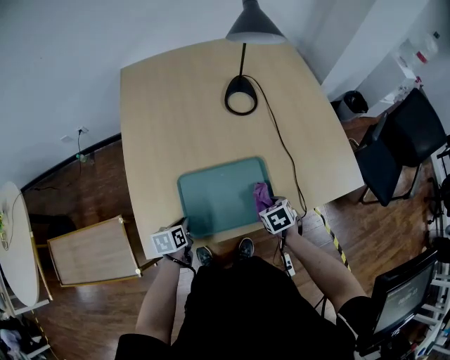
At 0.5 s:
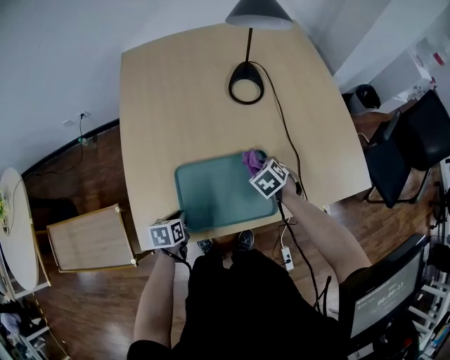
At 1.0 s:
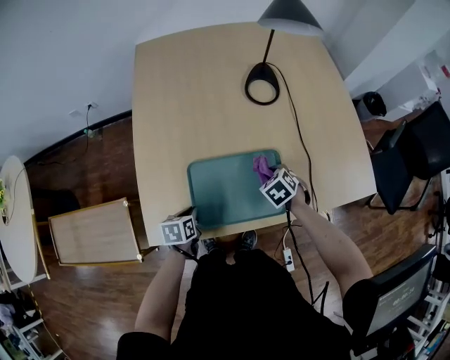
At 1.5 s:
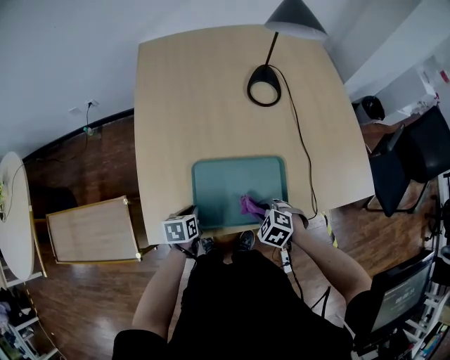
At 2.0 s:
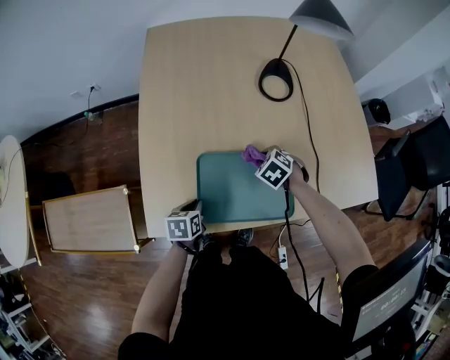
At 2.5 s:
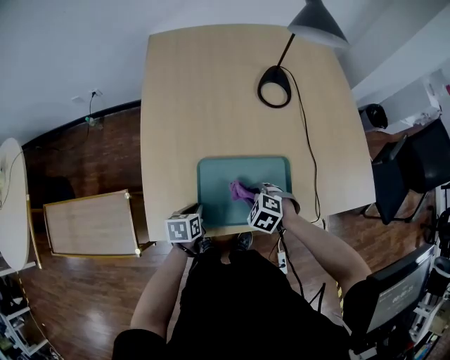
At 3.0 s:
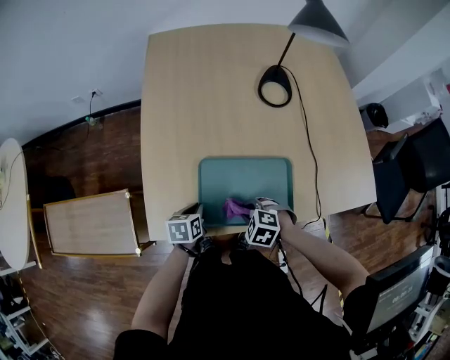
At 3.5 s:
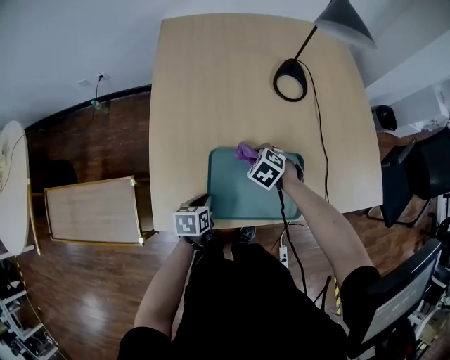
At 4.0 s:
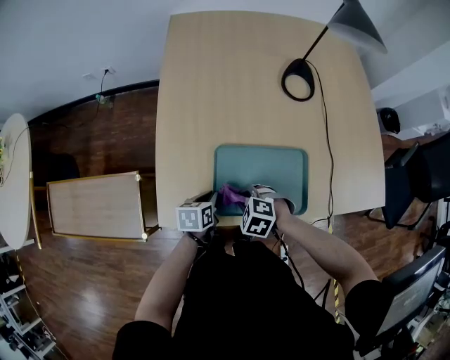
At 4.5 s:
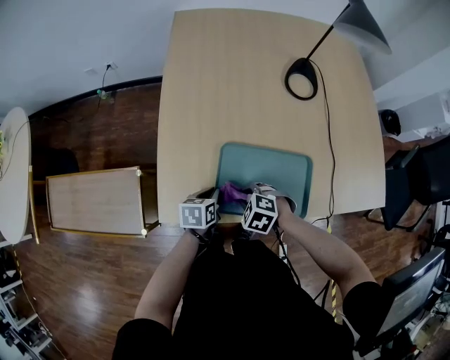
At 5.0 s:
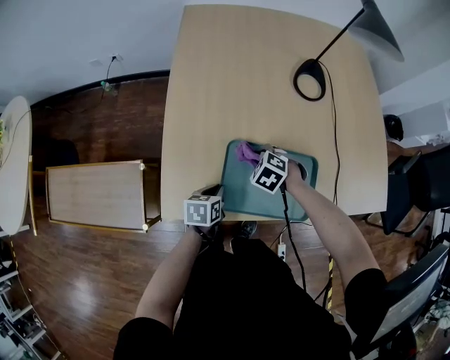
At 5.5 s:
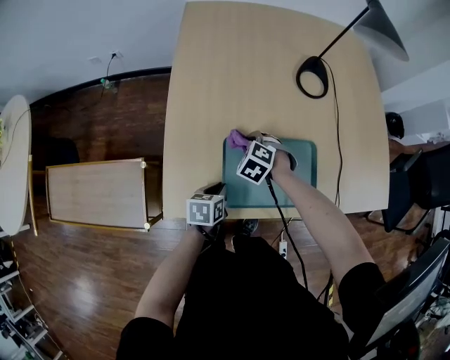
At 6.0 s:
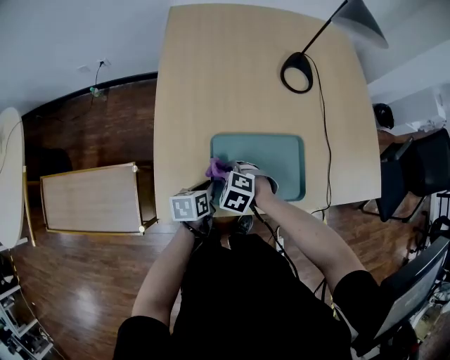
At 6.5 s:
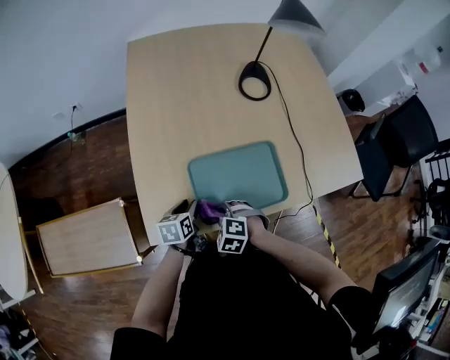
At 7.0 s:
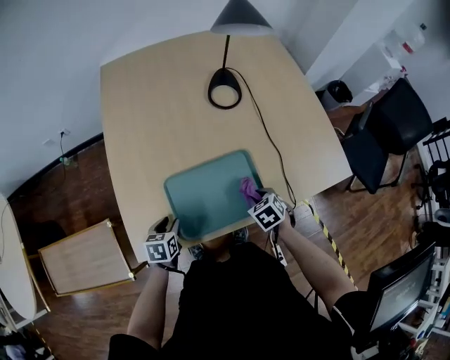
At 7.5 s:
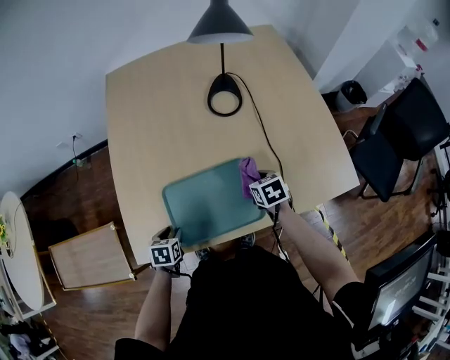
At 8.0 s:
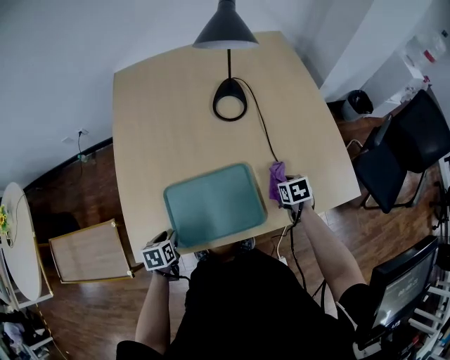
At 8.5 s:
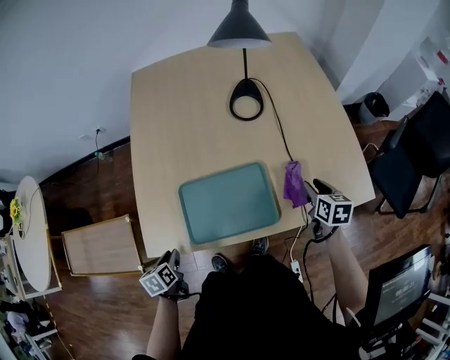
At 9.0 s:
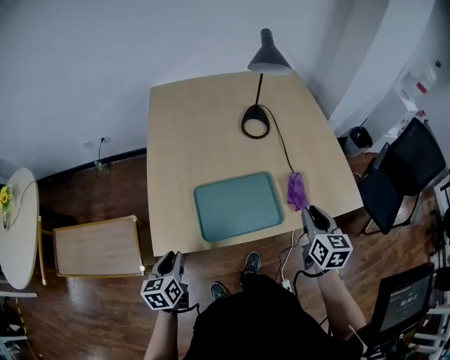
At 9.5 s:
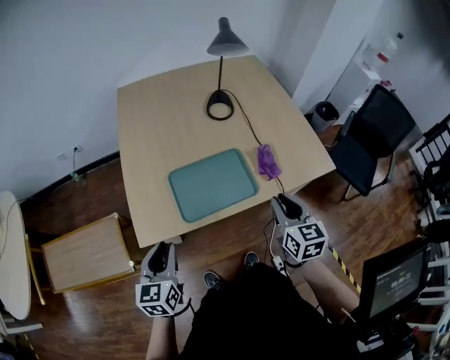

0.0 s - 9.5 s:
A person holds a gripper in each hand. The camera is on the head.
0.0 s - 2.0 s: The right gripper swings forward and backward, some 15 cm each way, with 2 reversals, and rotates roughly 40 degrees.
2.0 s - 4.0 s: The right gripper goes forward and backward, some 15 cm each way, reversing 2 times, and rotates roughly 30 degrees.
4.0 s - 5.5 s: The right gripper shifts some 15 cm forward.
5.5 s - 7.5 s: The right gripper heads to the right, covering about 25 cm, and rolls clockwise, seen from behind, by about 60 degrees. The left gripper turns by approximately 20 degrees, and opens.
7.5 s - 9.5 s: Both grippers travel together upward and backward, approximately 25 cm. The right gripper points its fingers about 30 degrees further upward, and opens and closes again, while the left gripper tips its fingers upward by approximately 40 degrees.

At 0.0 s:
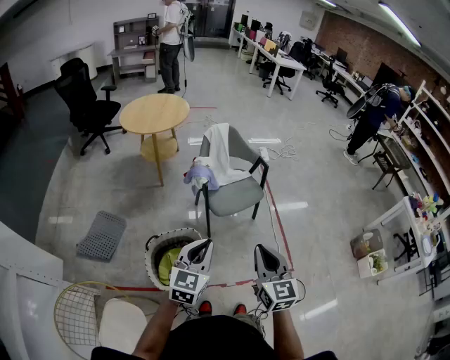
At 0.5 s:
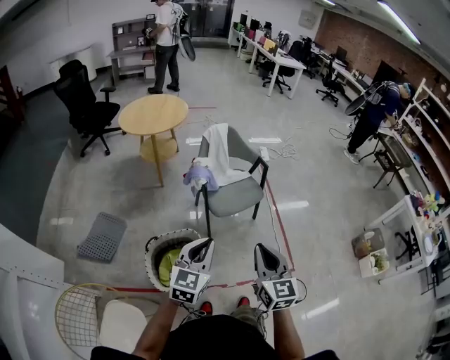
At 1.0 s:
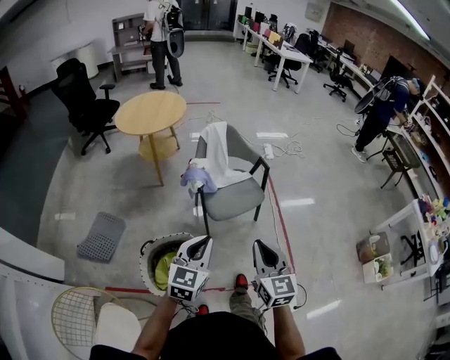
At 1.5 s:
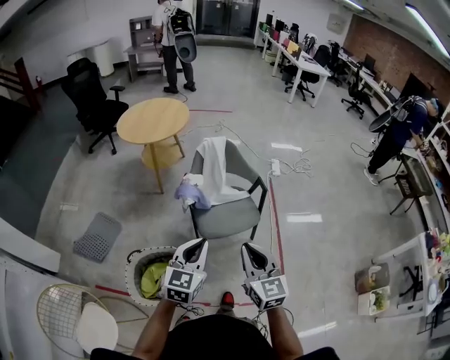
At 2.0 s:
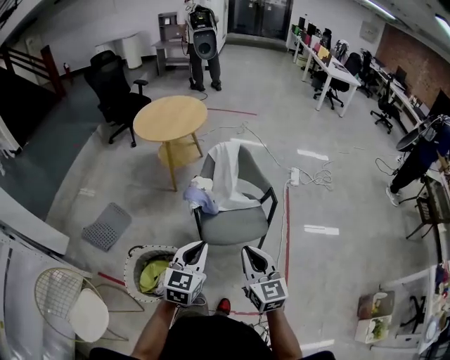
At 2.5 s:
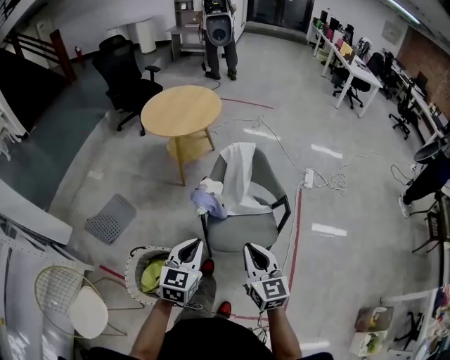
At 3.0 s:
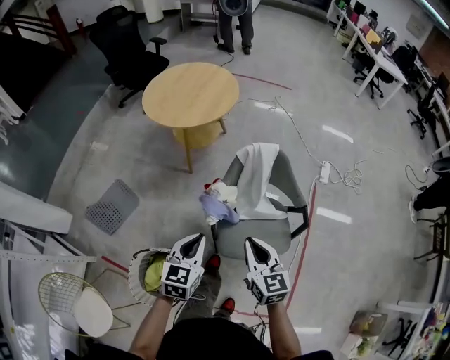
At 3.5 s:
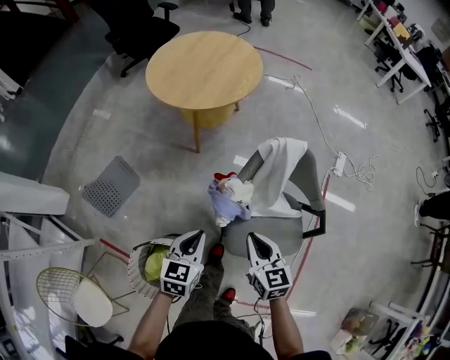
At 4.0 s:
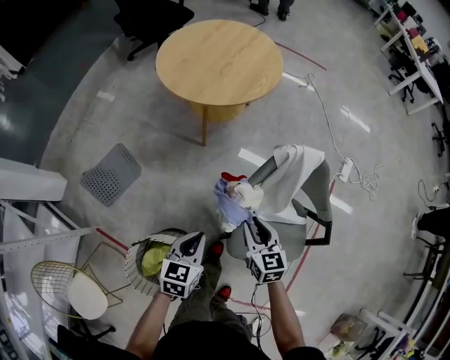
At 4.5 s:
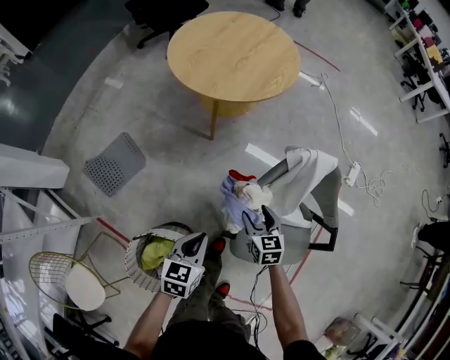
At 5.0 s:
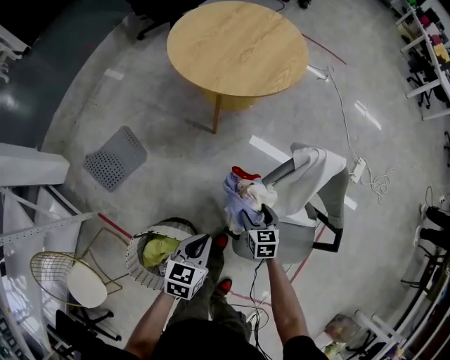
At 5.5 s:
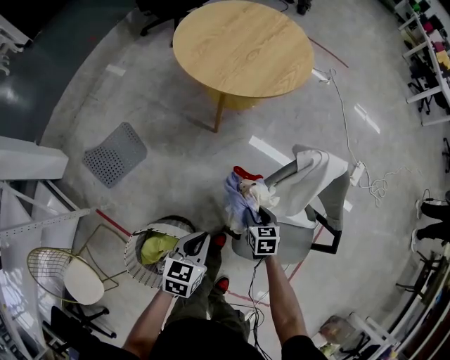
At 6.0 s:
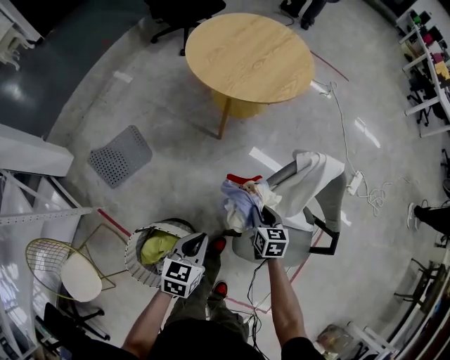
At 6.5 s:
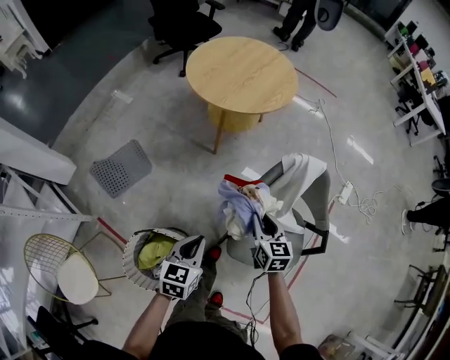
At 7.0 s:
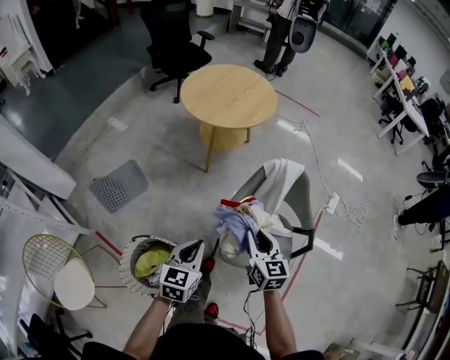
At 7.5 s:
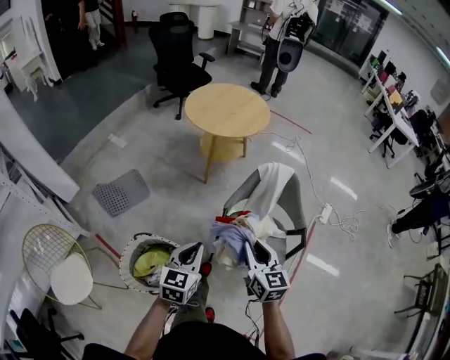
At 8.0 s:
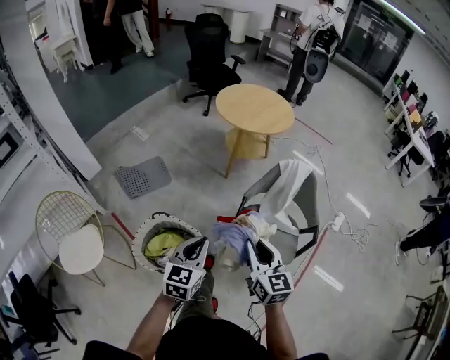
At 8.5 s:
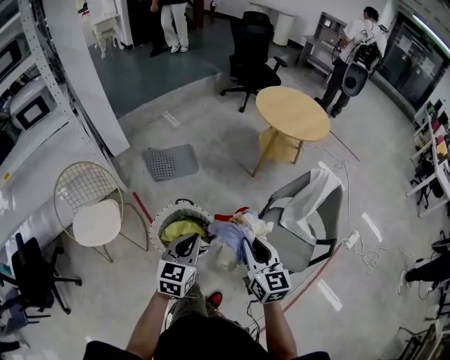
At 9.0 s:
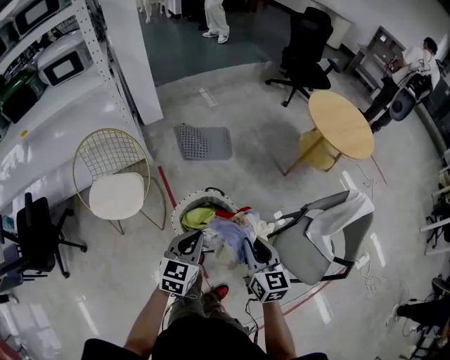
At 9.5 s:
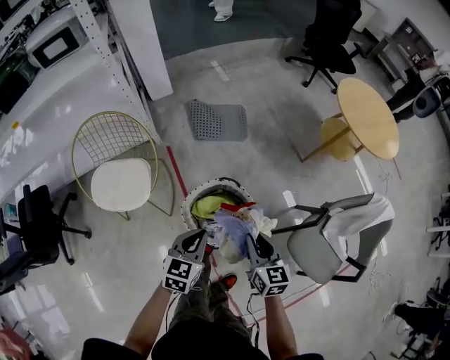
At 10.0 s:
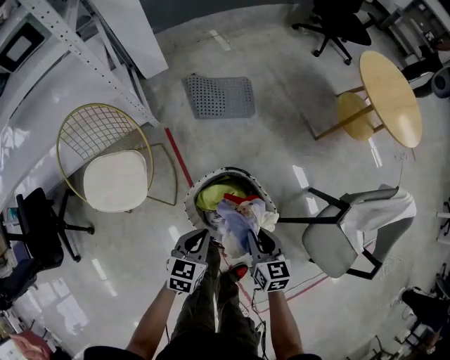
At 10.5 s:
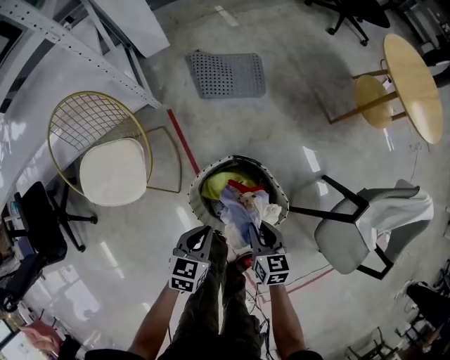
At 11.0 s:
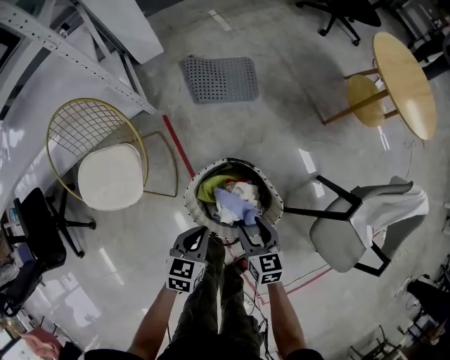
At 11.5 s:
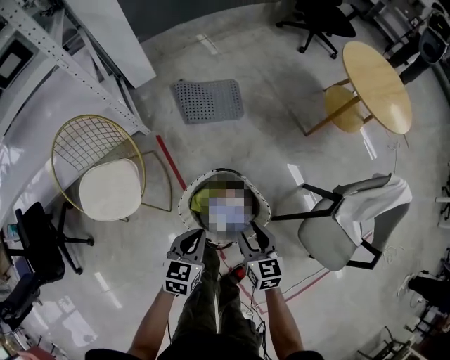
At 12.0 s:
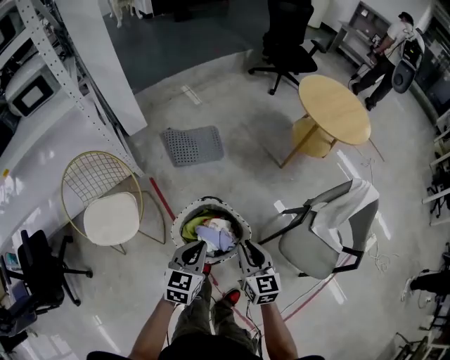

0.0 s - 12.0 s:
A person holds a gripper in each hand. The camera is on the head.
0.0 s - 2.0 s: The two grippers go roughly 30 cm forward and to the right. The right gripper swivels about 20 degrees.
2.0 s - 4.0 s: The right gripper travels forward and downward by approximately 50 cm, and changes its angle by approximately 30 degrees; the left gripper moves forward, downward and to the left, roughly 40 cm, and changes its angle by some 30 degrees.
4.0 s - 6.0 s: The right gripper goes roughly 10 cm downward, and opens, then closes again.
6.0 s - 8.0 s: The two grippers go roughly 40 cm backward and upward. The left gripper changes its angle by about 30 degrees. Meanwhile the right gripper tips its fingers upward by about 30 degrees.
8.0 s - 10.0 s: The right gripper shifts by roughly 40 cm, and turns by roughly 40 degrees; the left gripper shifts by roughly 40 cm, and turns by approximately 30 degrees.
10.0 s - 12.0 s: The left gripper heads upward and to the right, covering approximately 15 cm, while the right gripper moves upward, some 15 cm, and opens and closes again.

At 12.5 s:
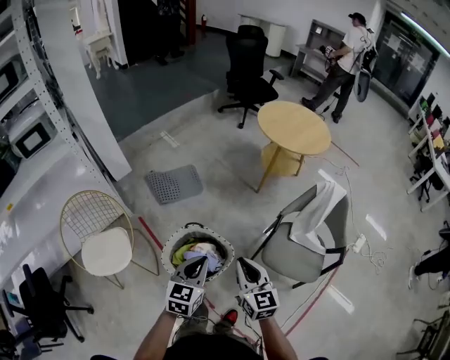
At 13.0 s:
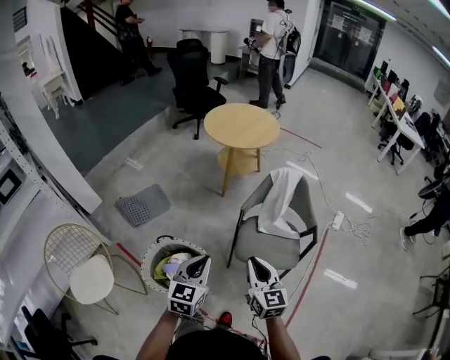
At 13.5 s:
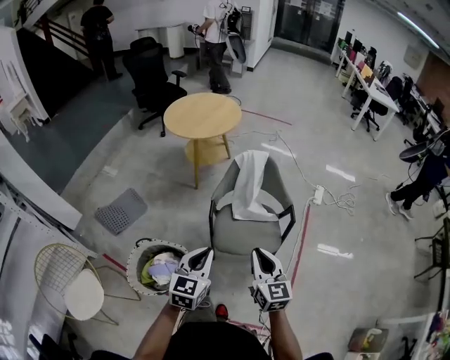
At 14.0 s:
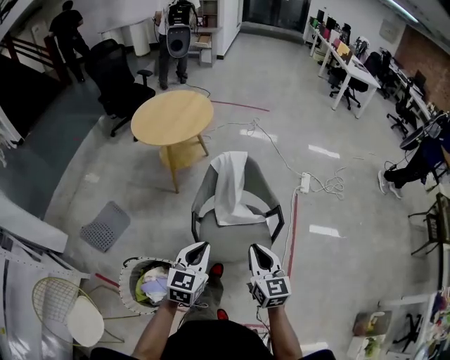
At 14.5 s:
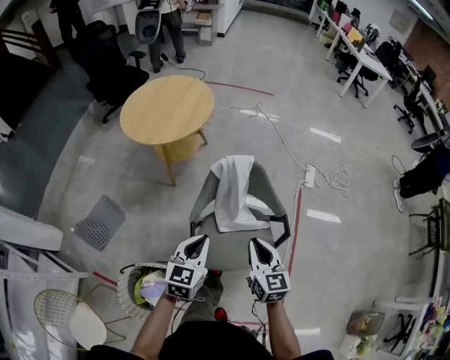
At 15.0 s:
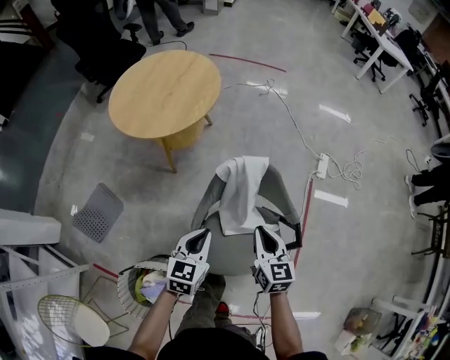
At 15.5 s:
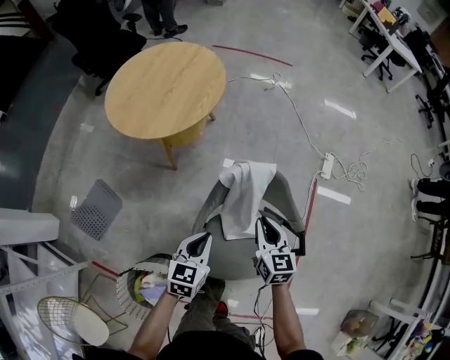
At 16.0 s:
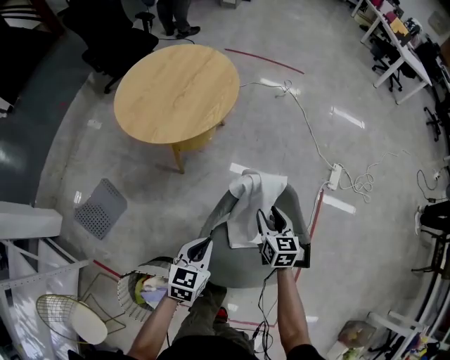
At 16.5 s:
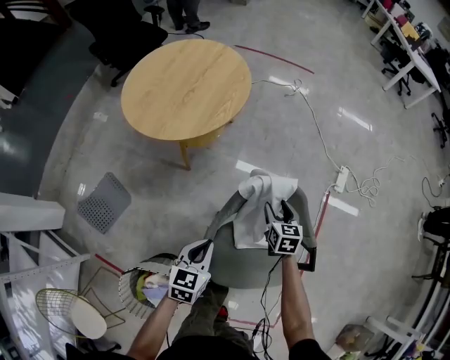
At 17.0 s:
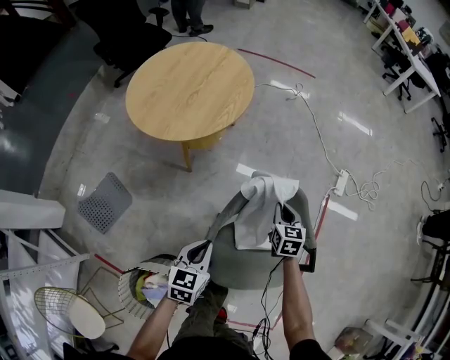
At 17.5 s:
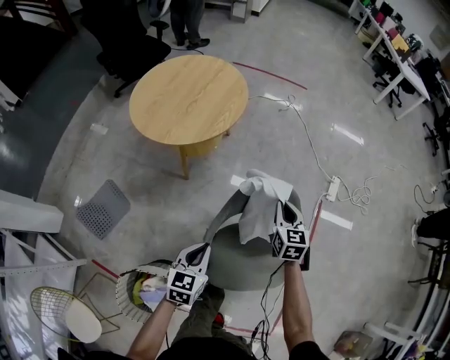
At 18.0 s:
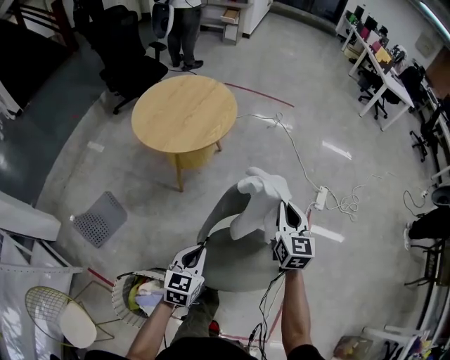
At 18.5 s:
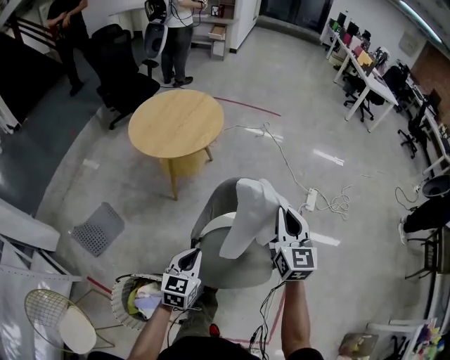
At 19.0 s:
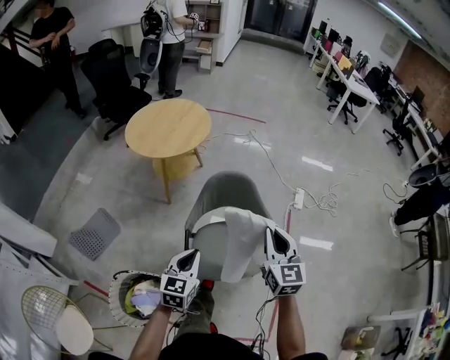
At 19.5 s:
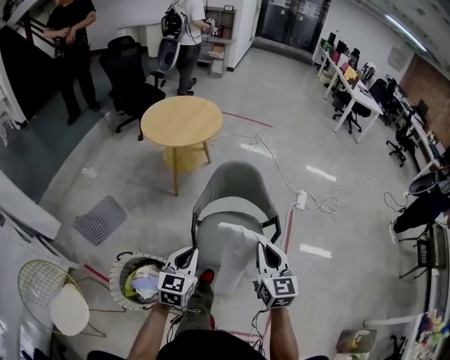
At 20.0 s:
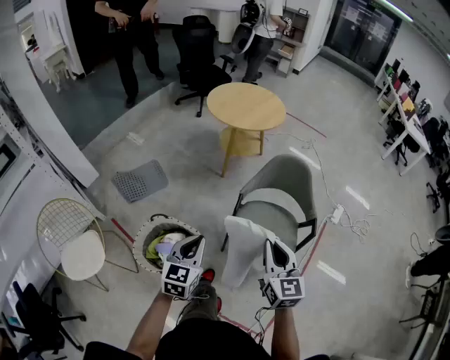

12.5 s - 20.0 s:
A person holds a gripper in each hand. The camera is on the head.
12.5 s - 14.5 s: The two grippers travel together, some 40 cm. The left gripper turns by about 30 degrees, while the right gripper swivels some 40 degrees.
14.5 s - 16.5 s: The right gripper travels forward and downward by roughly 40 cm, swivels approximately 20 degrees, and opens its fingers, while the left gripper goes roughly 20 cm downward, forward and to the left.
16.5 s - 18.0 s: The right gripper goes about 25 cm upward, swivels roughly 30 degrees, and closes its fingers; the left gripper travels upward and backward by about 10 cm.
18.0 s - 20.0 s: Both grippers travel together backward, some 40 cm. The left gripper turns by roughly 20 degrees. Meanwhile the right gripper turns by roughly 20 degrees.
